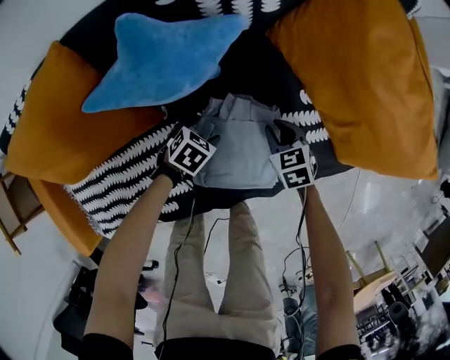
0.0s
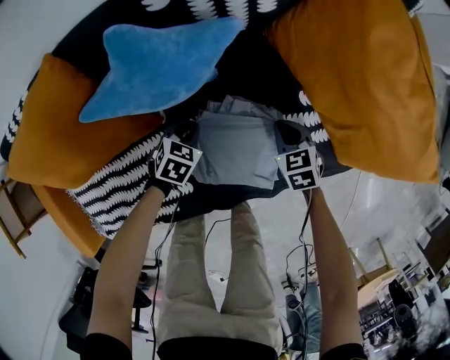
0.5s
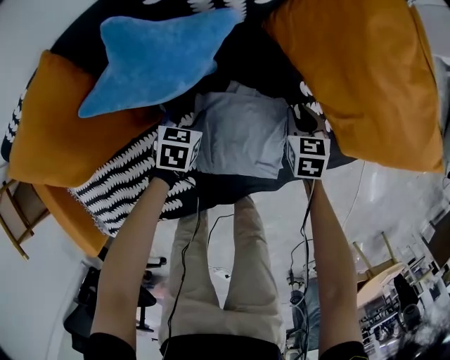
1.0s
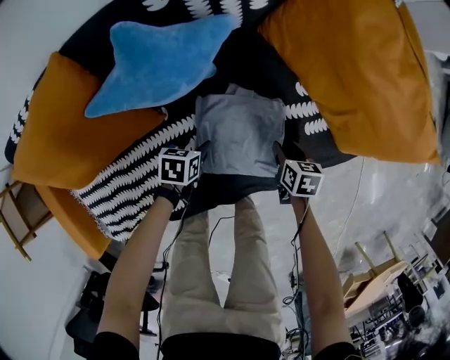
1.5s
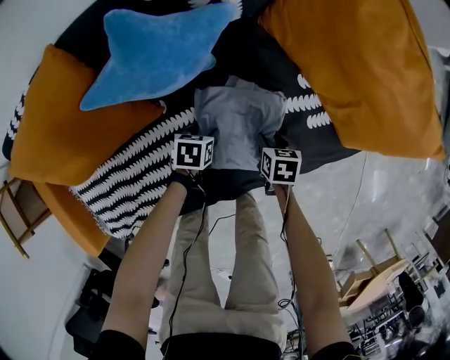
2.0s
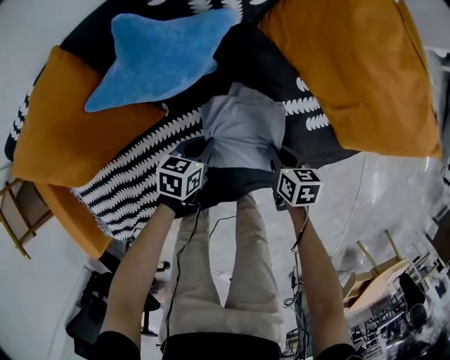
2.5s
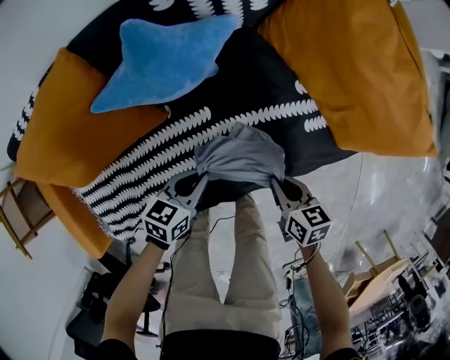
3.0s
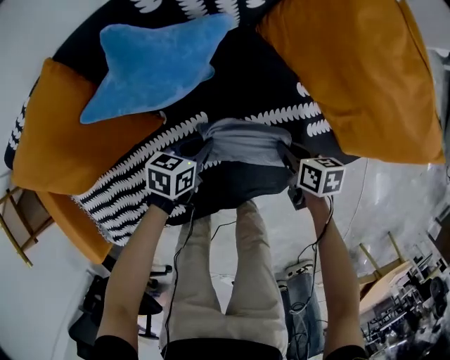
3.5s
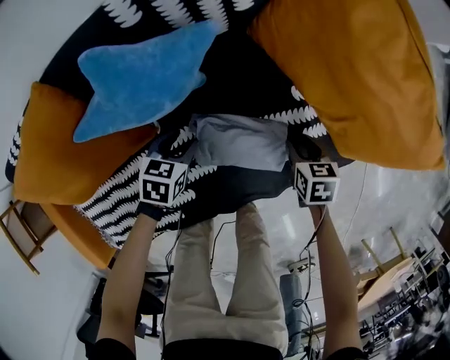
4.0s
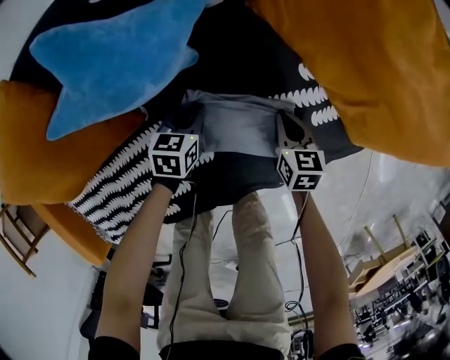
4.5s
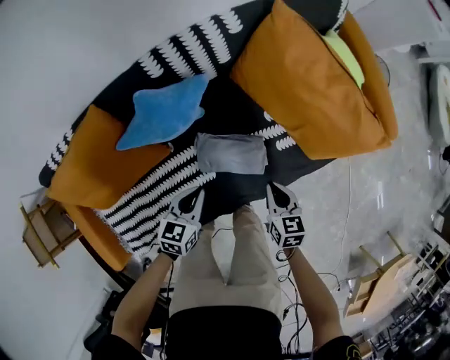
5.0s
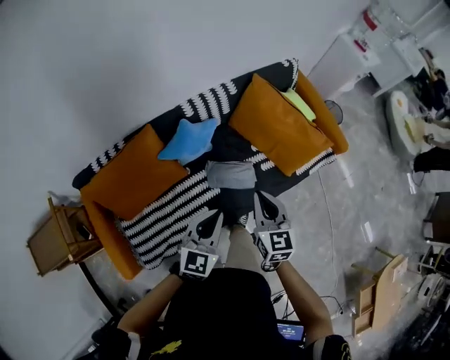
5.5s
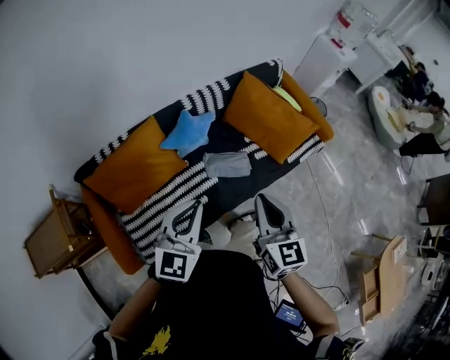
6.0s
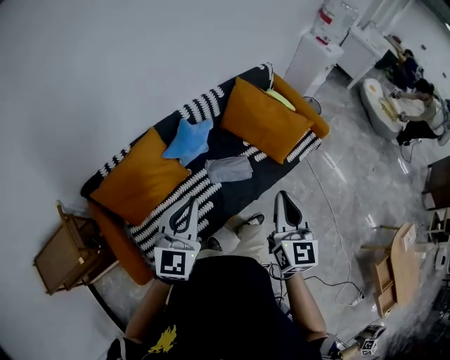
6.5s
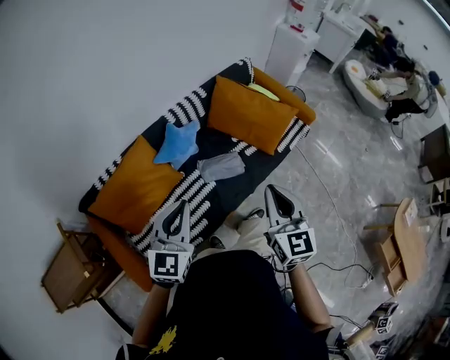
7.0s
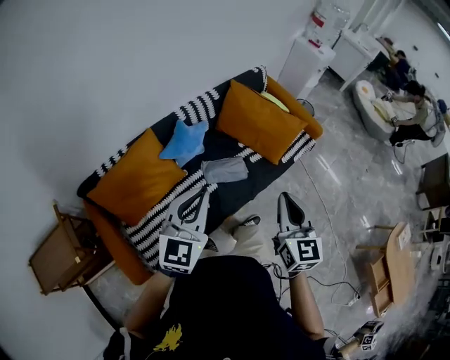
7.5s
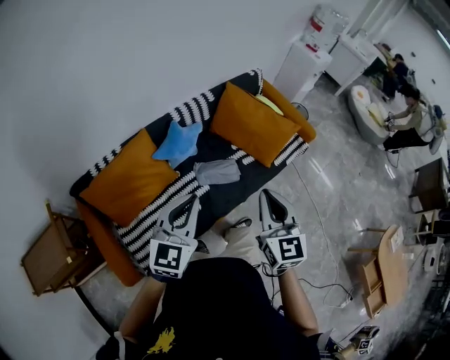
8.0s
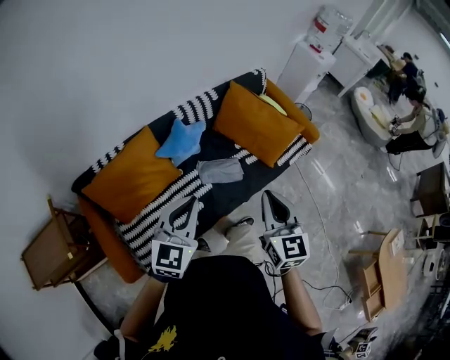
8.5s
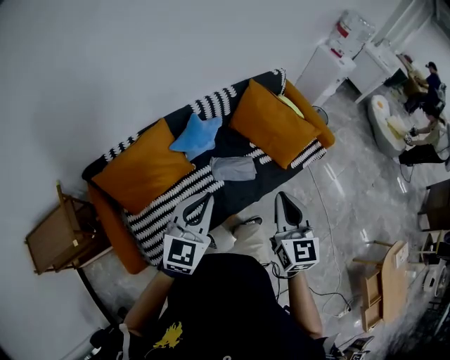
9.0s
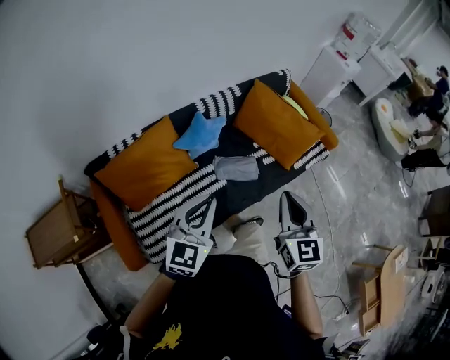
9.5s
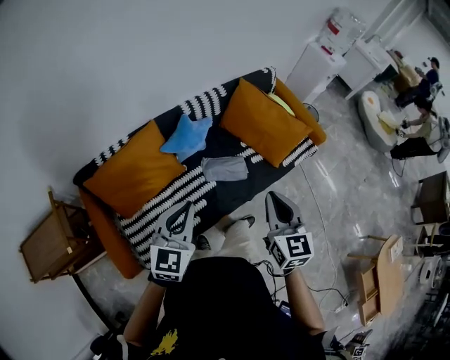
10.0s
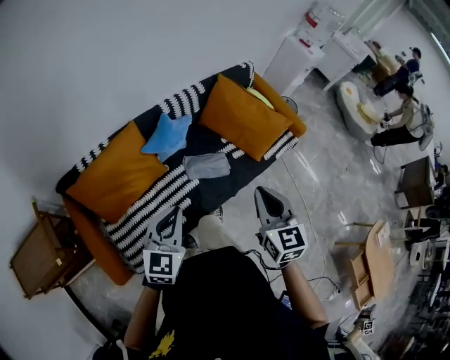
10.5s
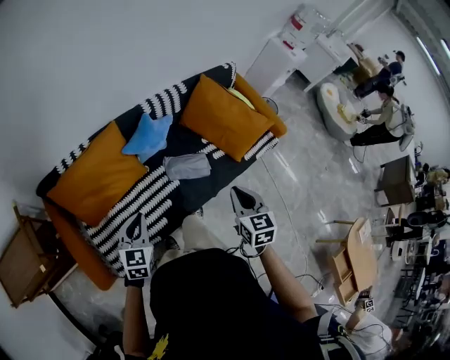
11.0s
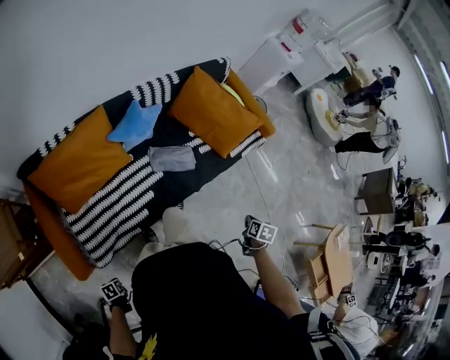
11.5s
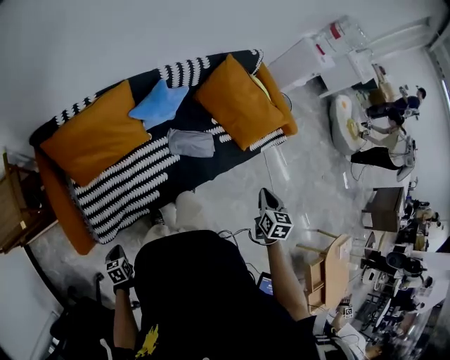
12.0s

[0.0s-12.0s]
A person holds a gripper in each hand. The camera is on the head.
0.0s to 2.0s: The left gripper turns by roughly 30 degrees, and closes, then reopens; the right gripper moves backward, some 10 cm, and rotates roughly 40 degrees.
2.0s to 4.0s: The right gripper moves to the right and forward, roughly 10 cm, and travels upward and back again, some 15 cm each way. Meanwhile the left gripper heads upward and forward, covering some 10 cm, and closes, then reopens.
4.0s to 6.0s: Both grippers travel together upward and backward, approximately 80 cm. The right gripper tilts its fingers some 50 degrees upward, while the left gripper tilts its fingers about 50 degrees upward, and closes its fingers.
8.0s to 10.0s: The left gripper ends up approximately 5 cm from where it was.
10.0s to 12.0s: The right gripper travels downward by approximately 20 cm, and swivels some 30 degrees. Meanwhile the left gripper travels downward by roughly 40 cm, and points its fingers approximately 40 degrees further downward.

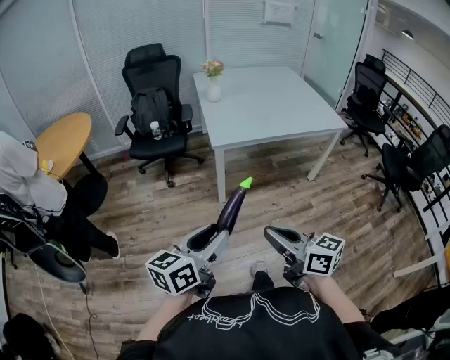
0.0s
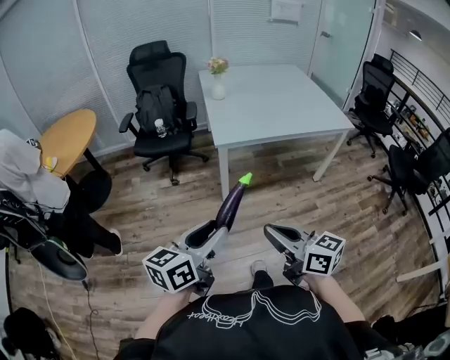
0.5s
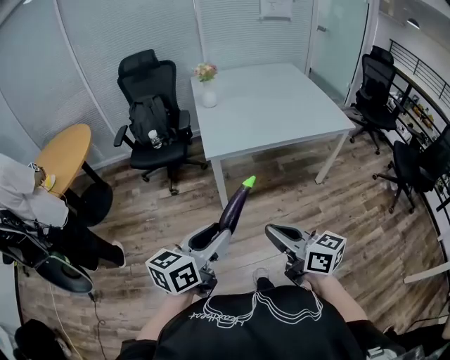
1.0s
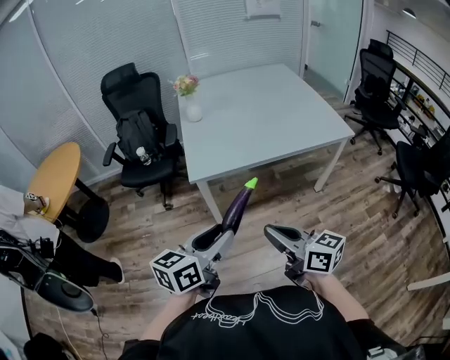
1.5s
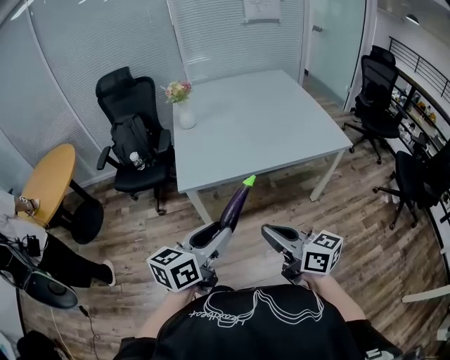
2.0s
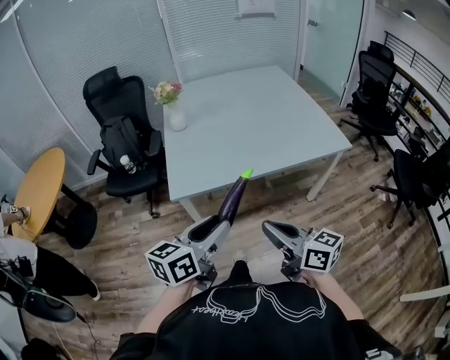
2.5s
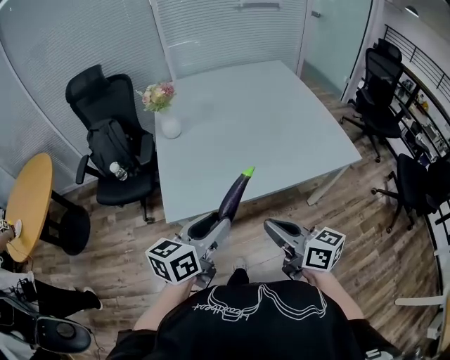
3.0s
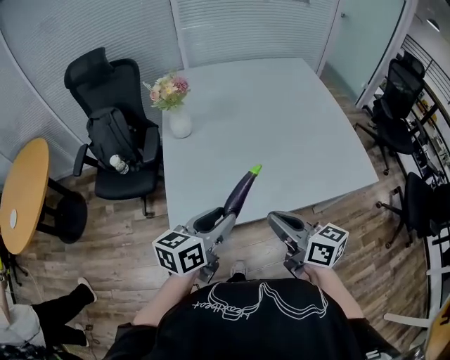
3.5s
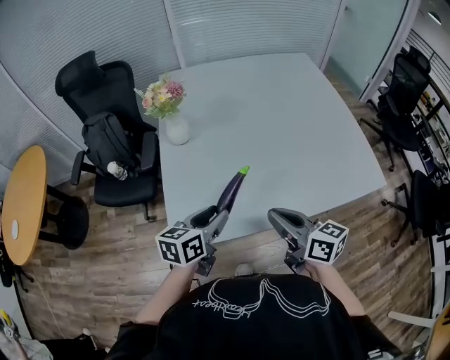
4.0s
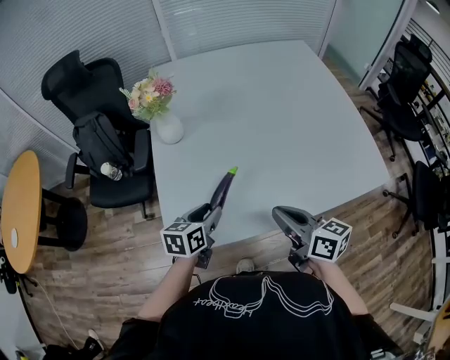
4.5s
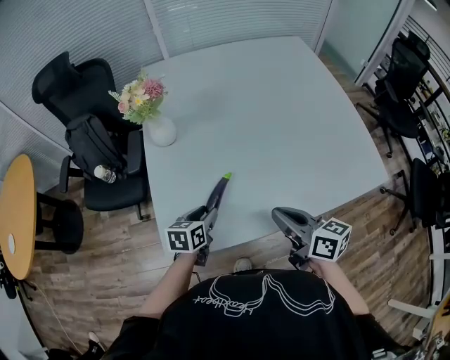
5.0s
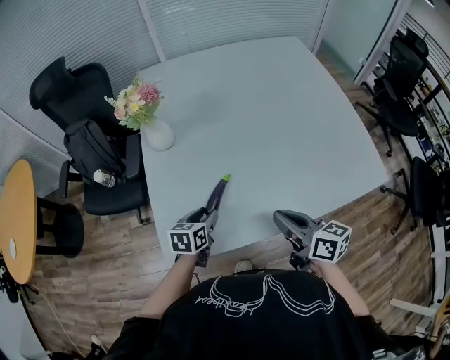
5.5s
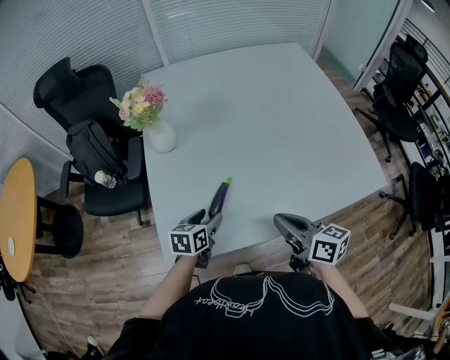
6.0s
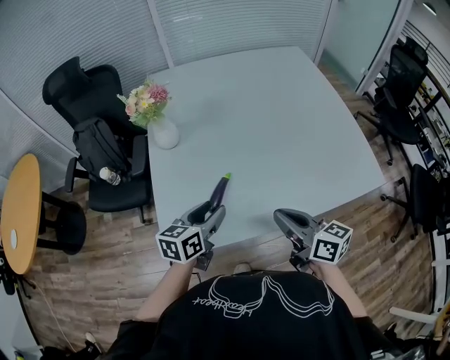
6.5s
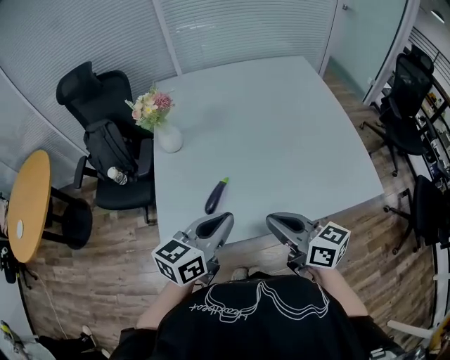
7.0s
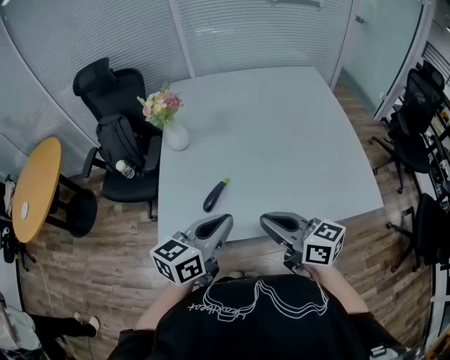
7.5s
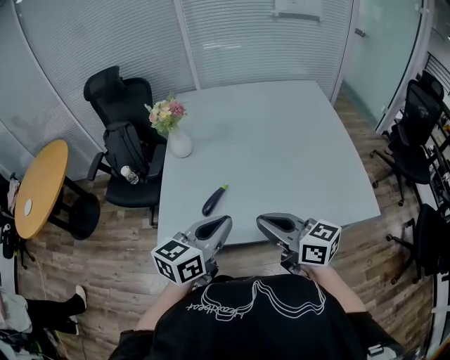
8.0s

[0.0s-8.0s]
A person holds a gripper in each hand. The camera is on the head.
0.0s to 2.0s: Both grippers move forward and to the right, approximately 35 cm.
2.0s to 4.0s: Both grippers move forward, about 40 cm.
4.0s to 6.0s: The left gripper heads downward and forward, covering approximately 15 cm. Meanwhile the right gripper is displaced downward by roughly 5 cm.
6.0s to 8.0s: The left gripper shifts some 30 cm upward, backward and to the right, changes its angle by approximately 30 degrees, and closes. The right gripper moves upward and backward, some 15 cm, and turns by some 30 degrees.

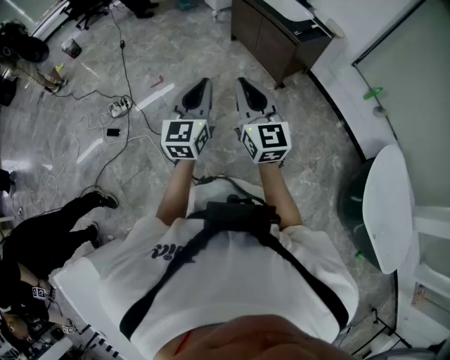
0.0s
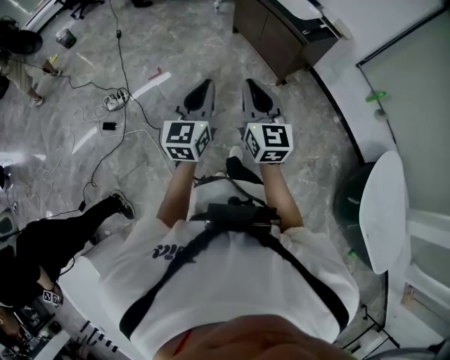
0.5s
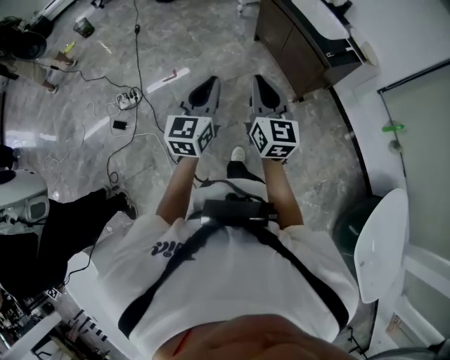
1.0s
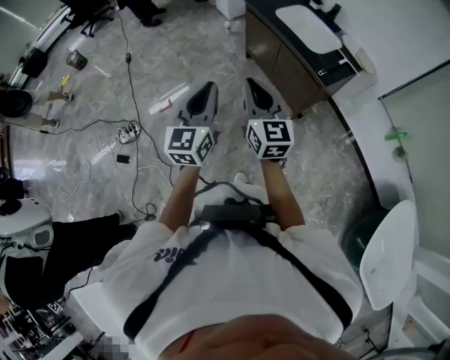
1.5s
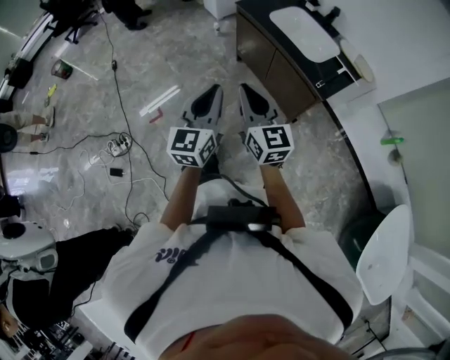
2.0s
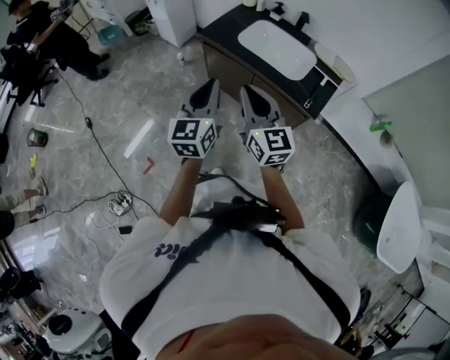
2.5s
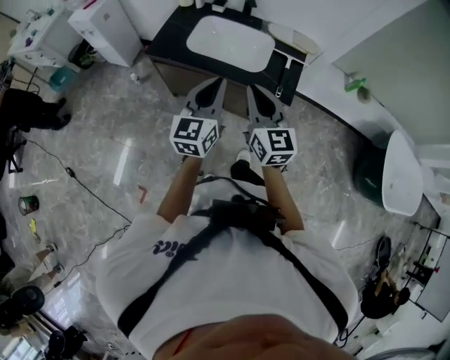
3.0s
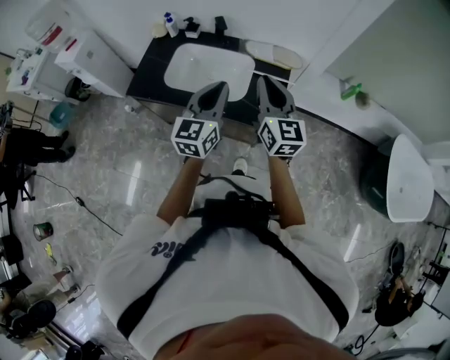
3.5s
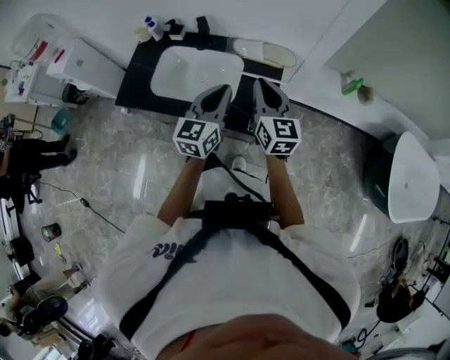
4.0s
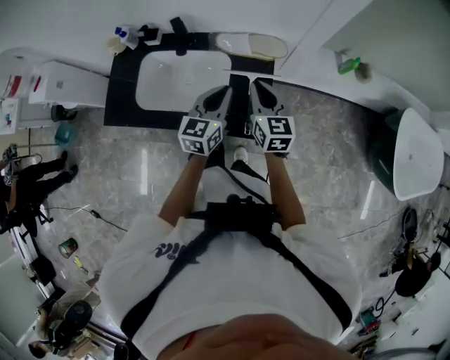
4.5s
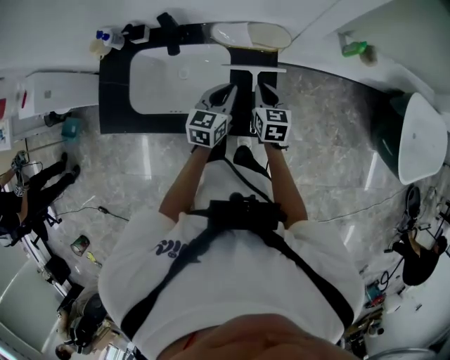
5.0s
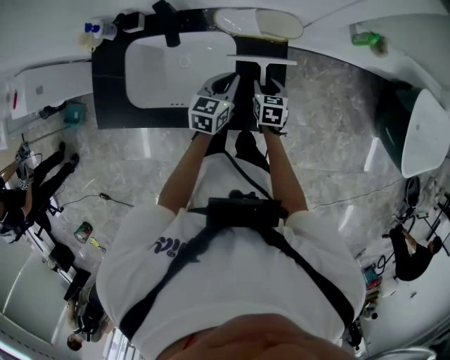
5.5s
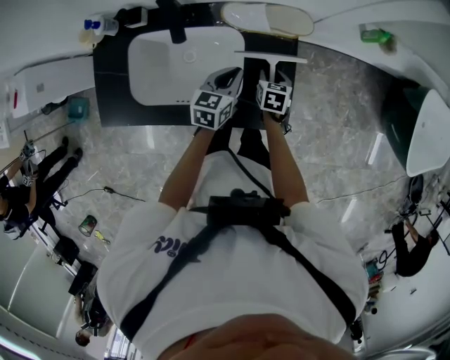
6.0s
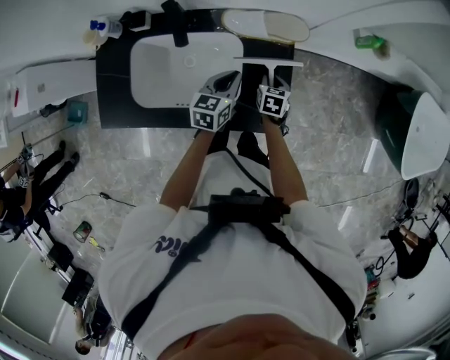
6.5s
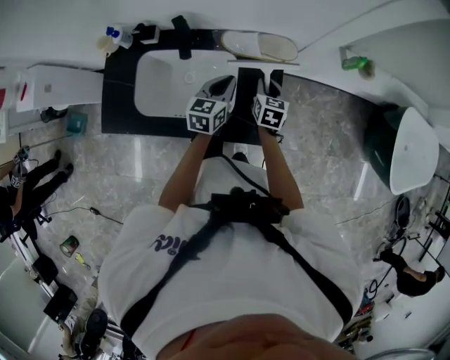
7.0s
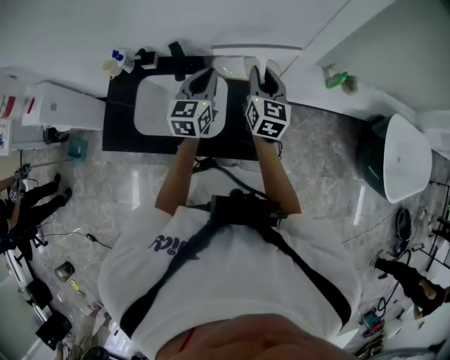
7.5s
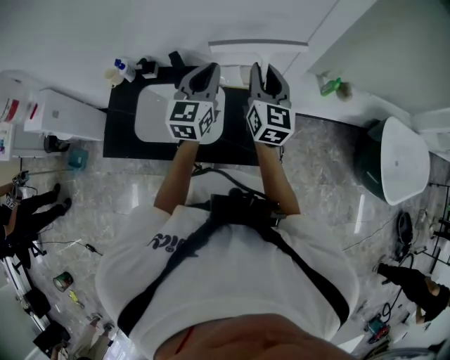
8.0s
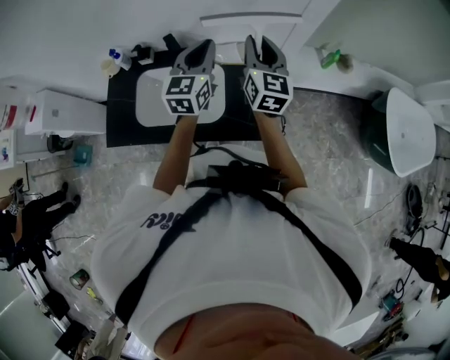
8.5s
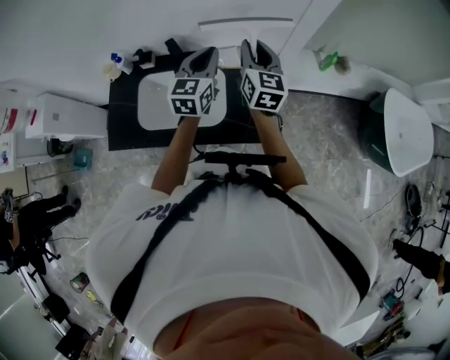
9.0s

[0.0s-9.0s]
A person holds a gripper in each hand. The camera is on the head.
0.0s to 2.0s: The two grippers travel together, forward, some 50 cm.
2.0s to 4.5s: The two grippers travel together, roughly 60 cm. The right gripper rotates approximately 60 degrees. The left gripper swivels roughly 60 degrees.
4.5s to 7.0s: The left gripper travels downward, forward and to the left by approximately 15 cm, while the right gripper goes some 20 cm downward and forward, and changes its angle by roughly 30 degrees.
7.0s to 9.0s: The two grippers go about 25 cm upward. The right gripper tips its fingers upward by roughly 30 degrees; the left gripper rotates about 20 degrees.
